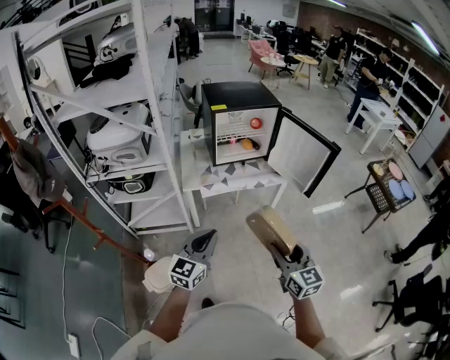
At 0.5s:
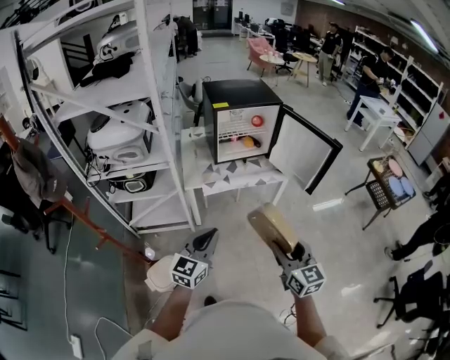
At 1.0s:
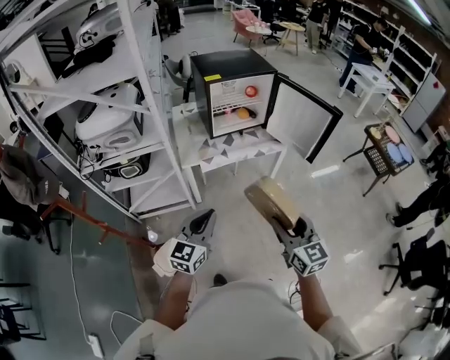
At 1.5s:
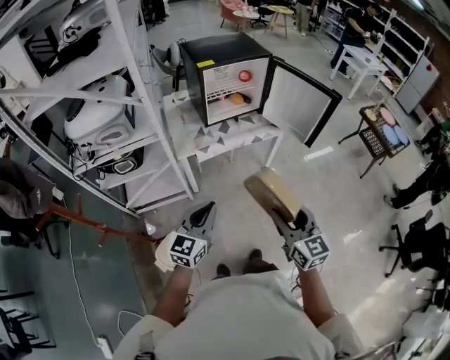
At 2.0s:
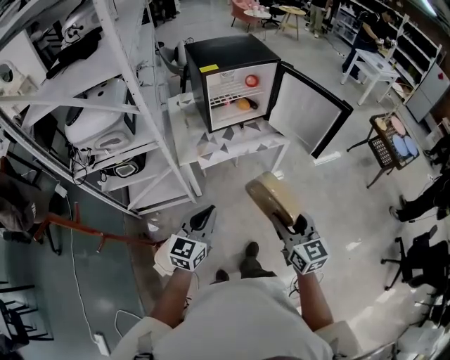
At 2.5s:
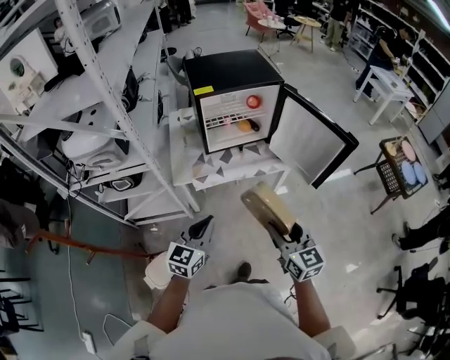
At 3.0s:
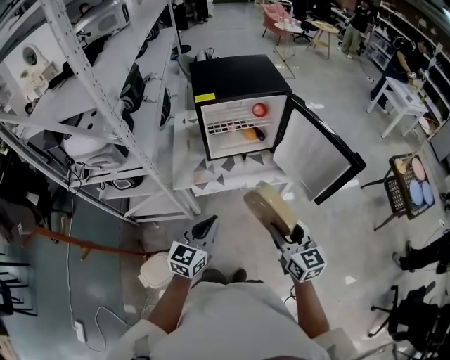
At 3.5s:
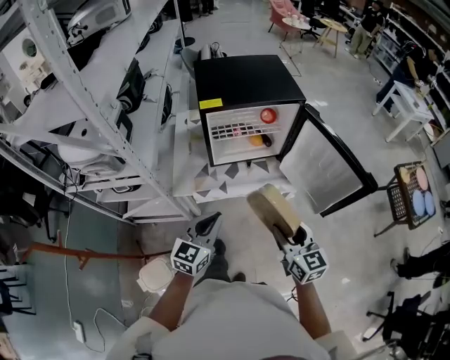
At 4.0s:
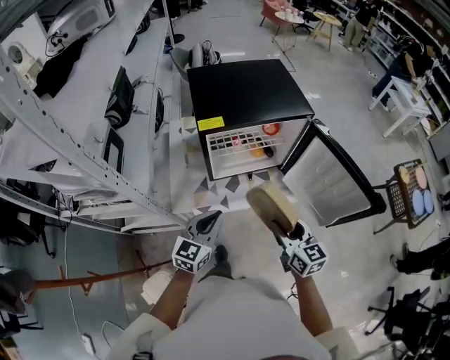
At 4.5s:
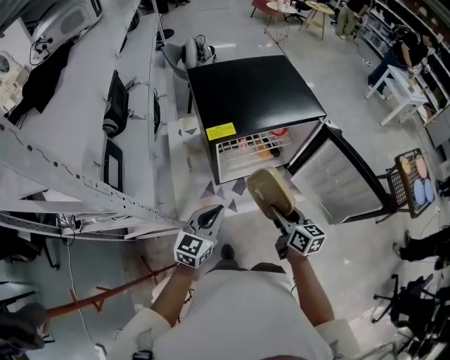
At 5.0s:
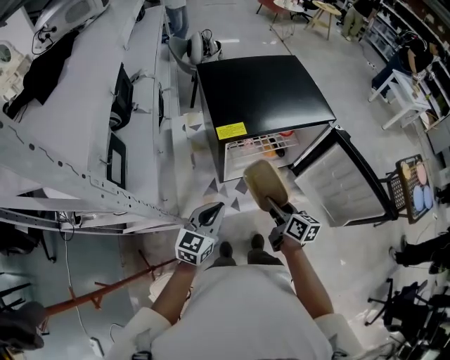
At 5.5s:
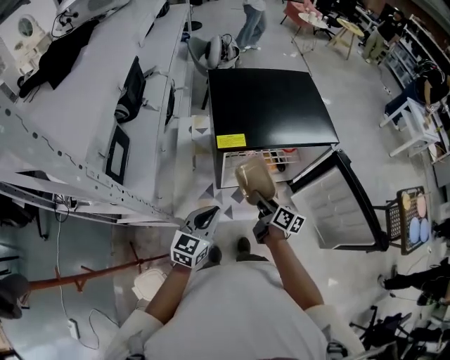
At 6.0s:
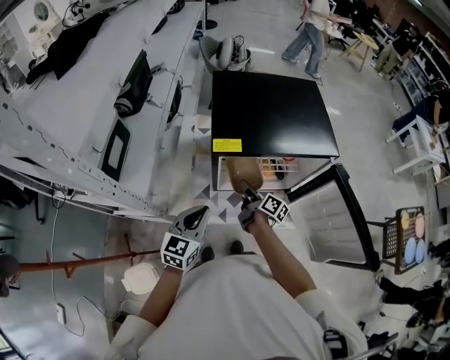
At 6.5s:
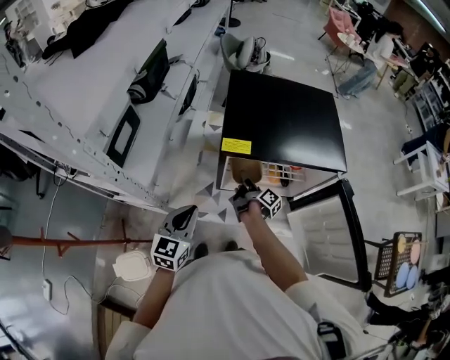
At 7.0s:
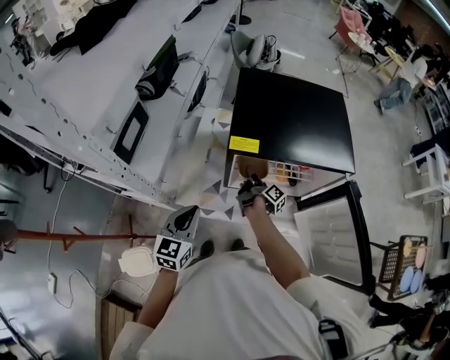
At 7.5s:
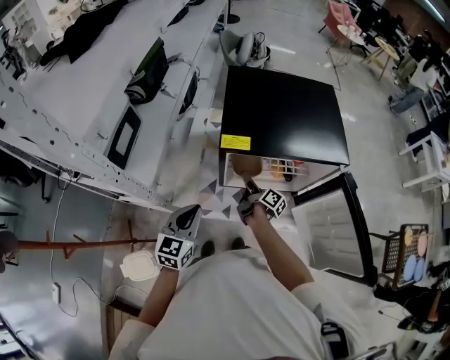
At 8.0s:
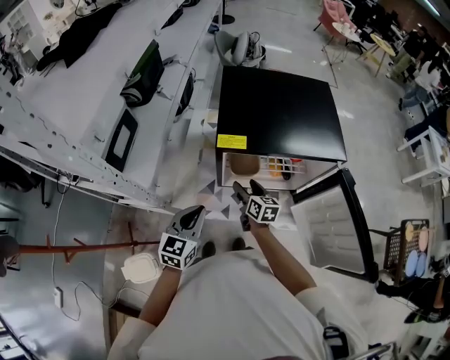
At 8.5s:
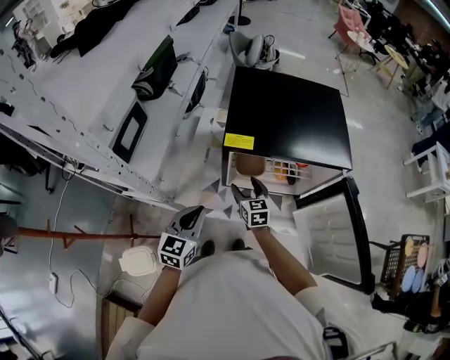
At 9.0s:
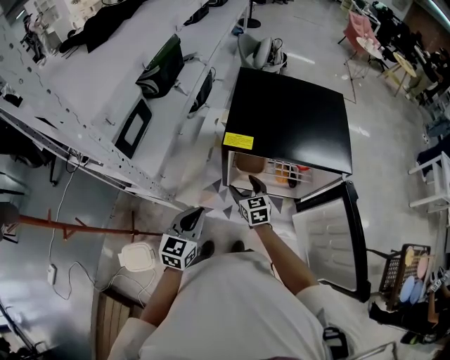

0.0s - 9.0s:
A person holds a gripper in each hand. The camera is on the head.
0.0s - 2.0s: The two grippers go about 5 cm forward.
2.0s - 4.5s: The grippers both shift forward by some 40 cm. The right gripper changes its angle by about 30 degrees.
4.5s - 7.0s: The right gripper moves forward, downward and to the left, some 30 cm, and rotates around the line of its fingers by roughly 50 degrees, clockwise from behind. Meanwhile the left gripper goes about 5 cm to the left, and rotates some 30 degrees.
7.0s - 9.0s: The right gripper is displaced backward by about 5 cm, and rolls counterclockwise, seen from behind, by about 90 degrees.

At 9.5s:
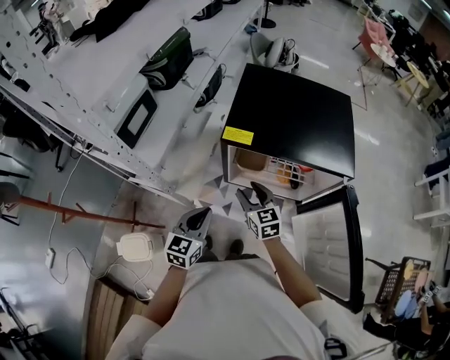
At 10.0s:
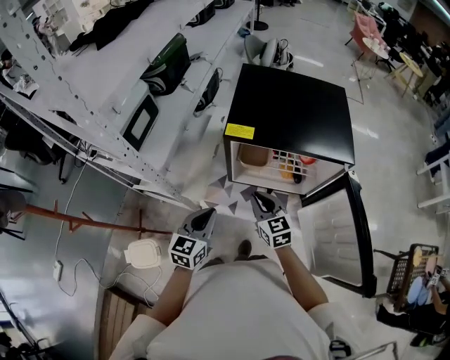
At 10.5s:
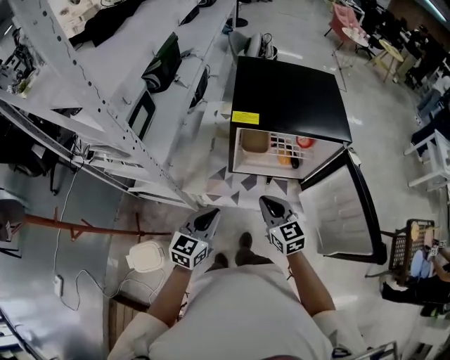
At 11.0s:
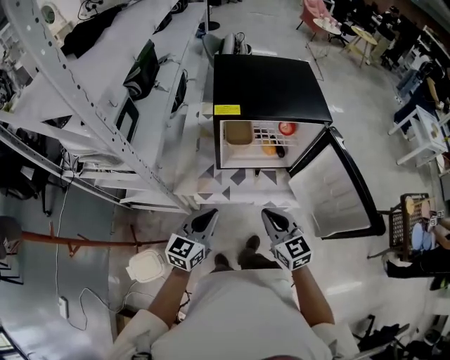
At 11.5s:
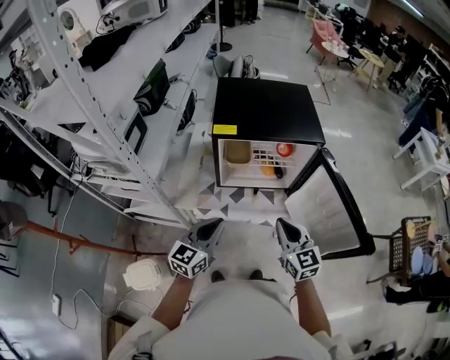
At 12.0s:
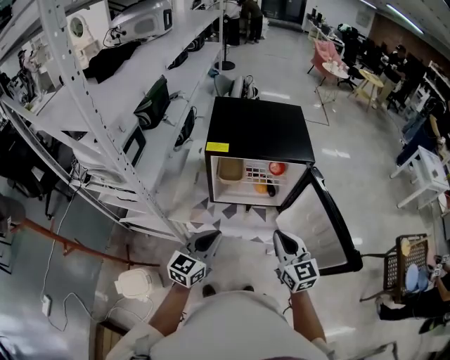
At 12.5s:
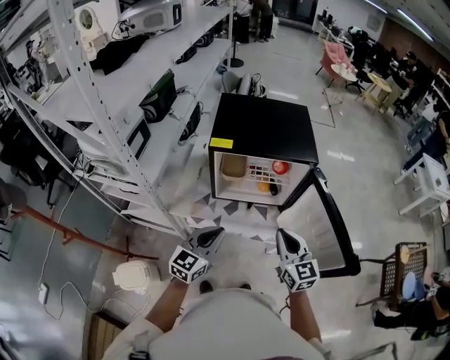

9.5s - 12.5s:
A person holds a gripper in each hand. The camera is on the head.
9.5s - 11.0s: The right gripper moves backward, roughly 20 cm, and closes; the left gripper goes approximately 10 cm backward, and changes its angle by roughly 20 degrees.
11.0s - 12.5s: Both grippers move to the right and upward, roughly 10 cm.

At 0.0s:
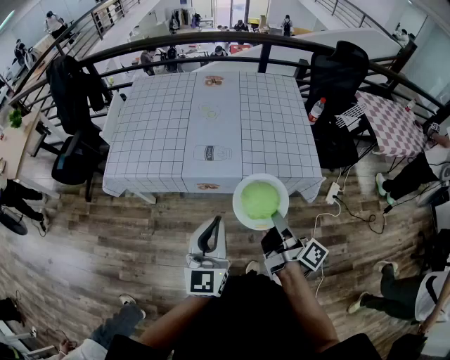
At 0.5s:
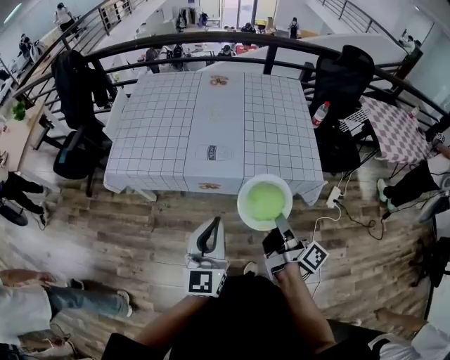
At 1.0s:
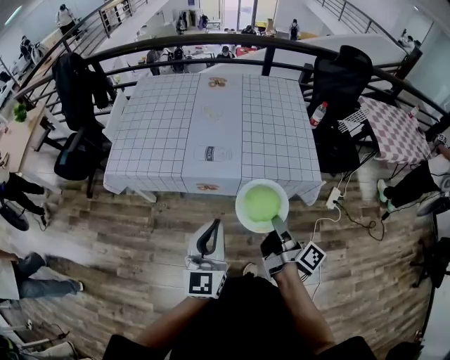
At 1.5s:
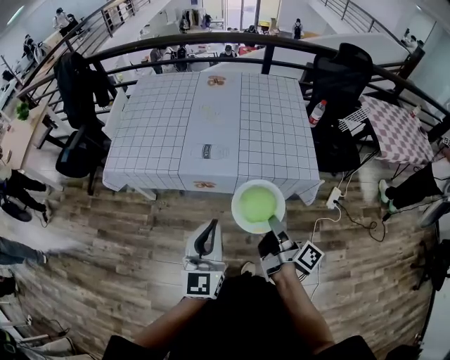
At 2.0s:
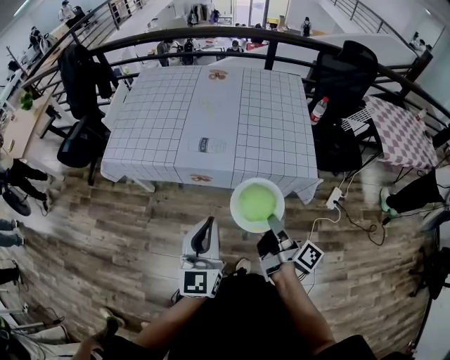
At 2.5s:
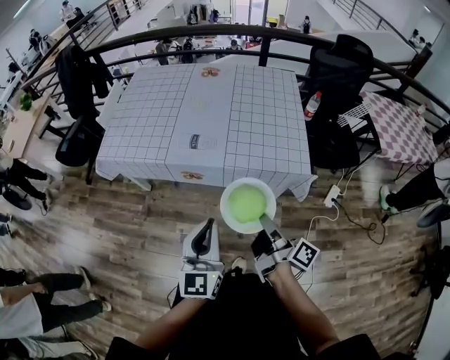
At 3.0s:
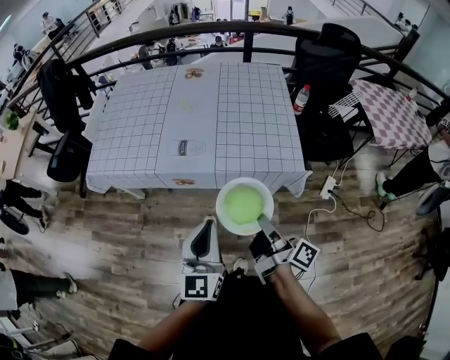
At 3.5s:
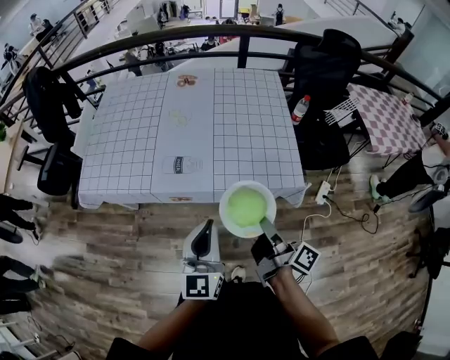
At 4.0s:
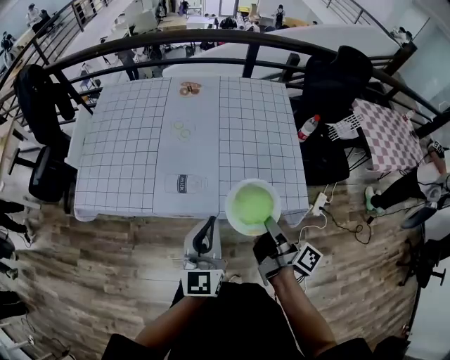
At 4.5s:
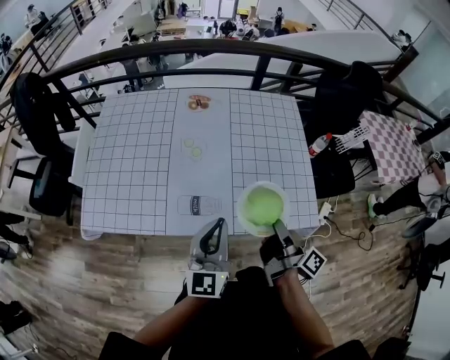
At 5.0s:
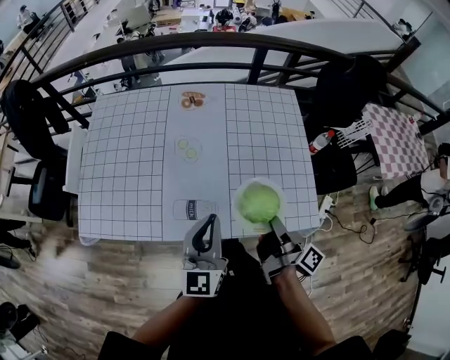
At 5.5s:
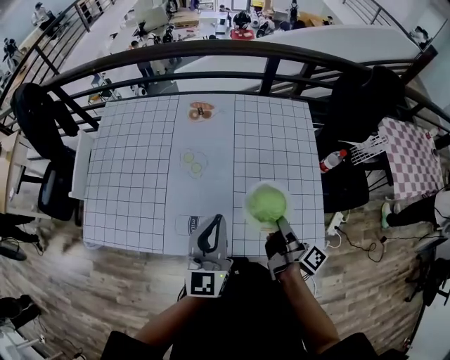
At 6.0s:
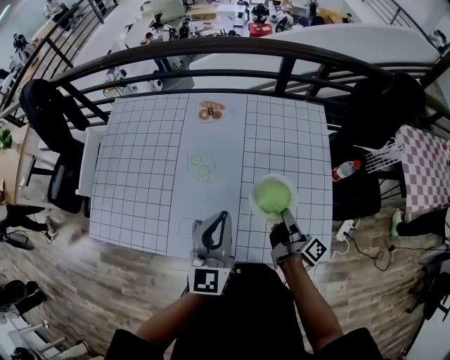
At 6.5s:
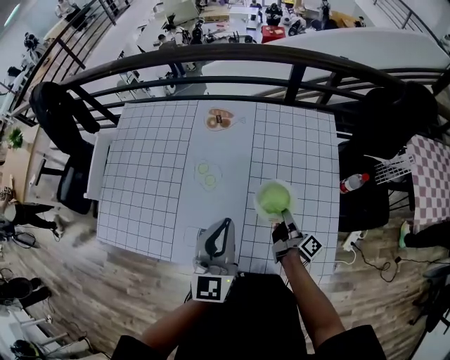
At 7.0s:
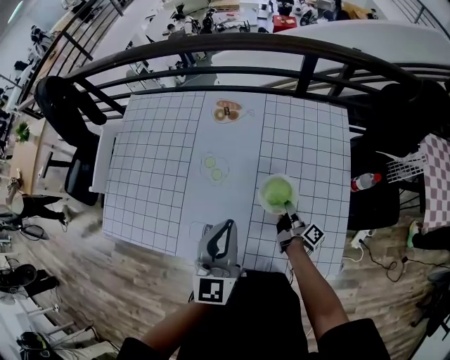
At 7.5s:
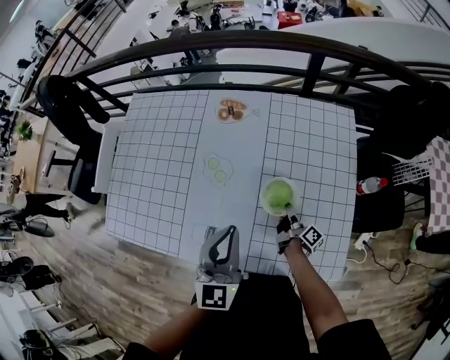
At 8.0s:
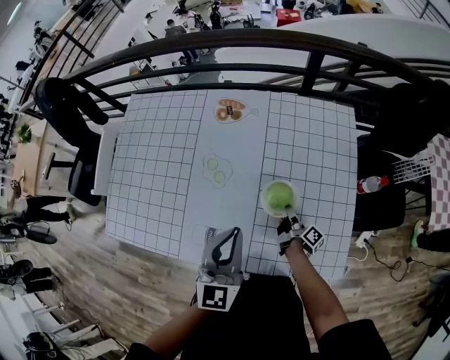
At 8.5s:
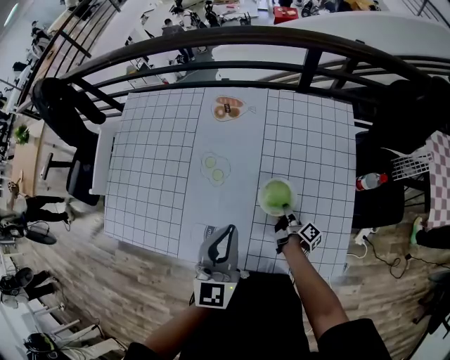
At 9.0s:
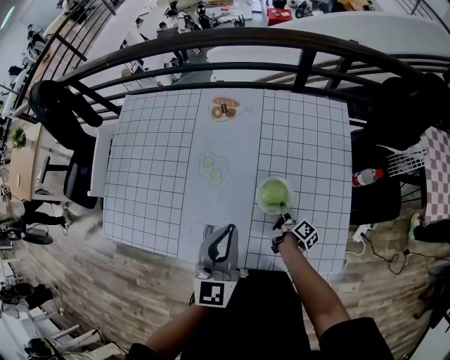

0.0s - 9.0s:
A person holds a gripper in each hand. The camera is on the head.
0.0s - 2.0s: The left gripper ends up about 5 cm from where it was.
2.0s - 4.5s: The left gripper shifts by about 30 cm.
4.5s - 7.0s: The left gripper shifts by approximately 20 cm.

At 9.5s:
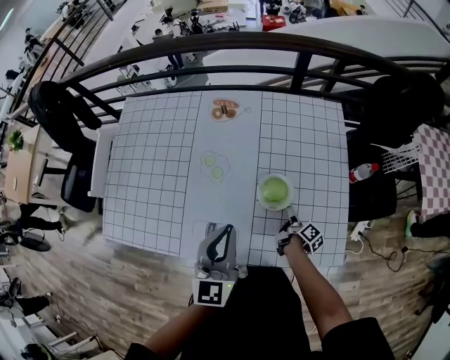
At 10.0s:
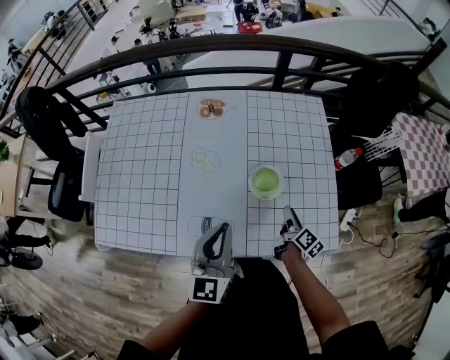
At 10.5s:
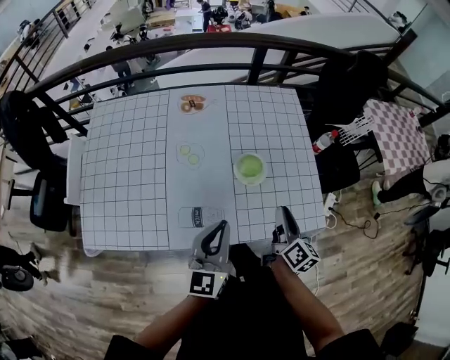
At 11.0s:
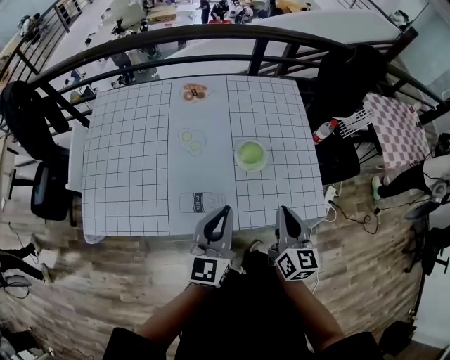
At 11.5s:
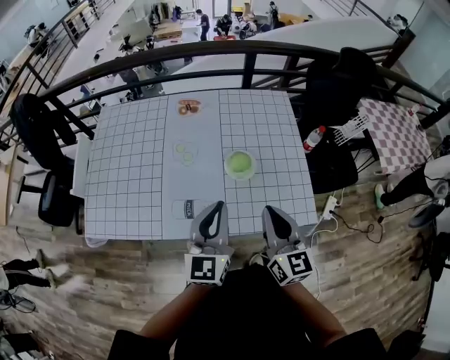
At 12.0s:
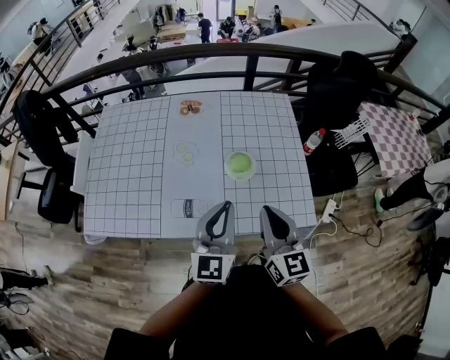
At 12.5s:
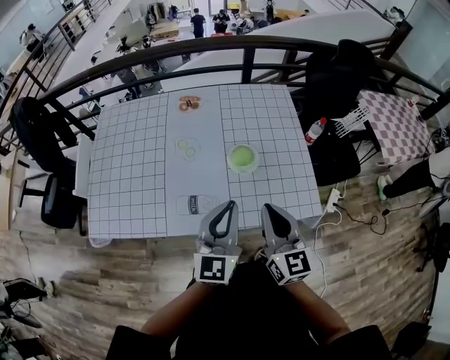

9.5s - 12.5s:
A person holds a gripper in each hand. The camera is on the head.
9.5s - 11.0s: The left gripper changes place by about 10 cm.
11.0s - 12.5s: The left gripper ends up roughly 10 cm from where it was.

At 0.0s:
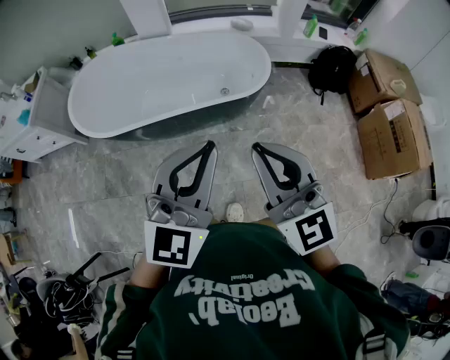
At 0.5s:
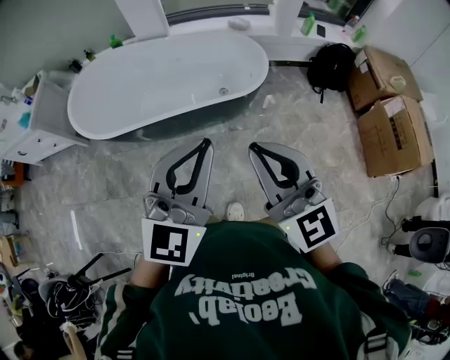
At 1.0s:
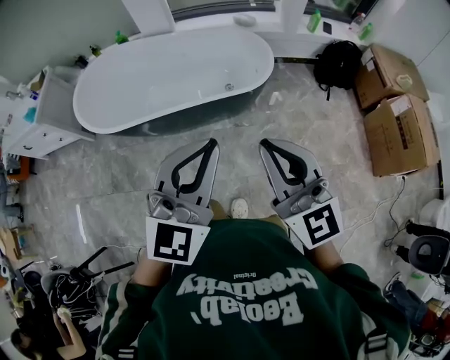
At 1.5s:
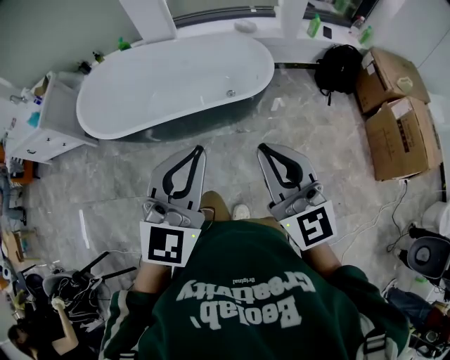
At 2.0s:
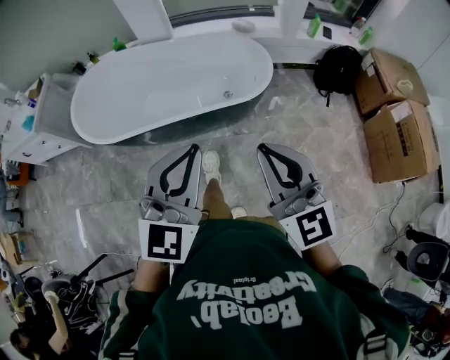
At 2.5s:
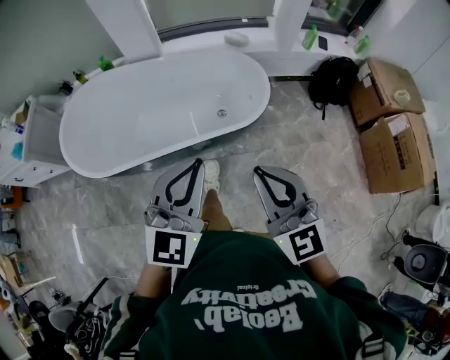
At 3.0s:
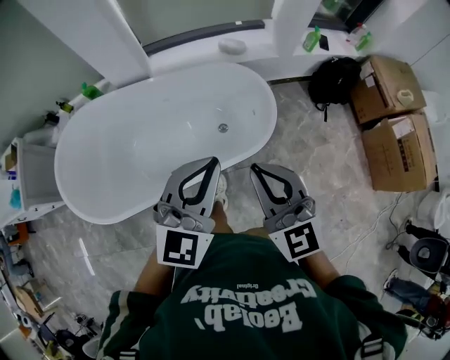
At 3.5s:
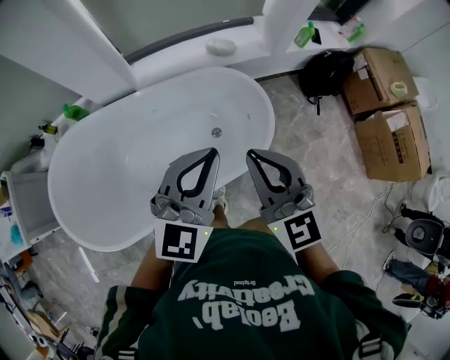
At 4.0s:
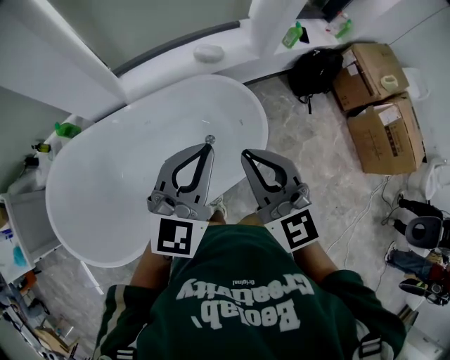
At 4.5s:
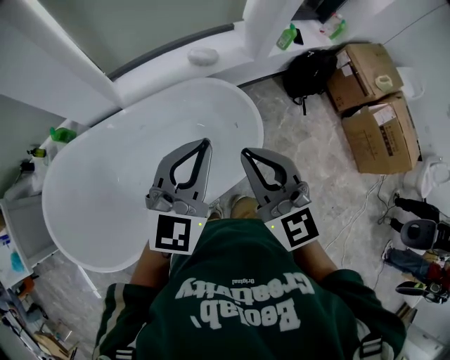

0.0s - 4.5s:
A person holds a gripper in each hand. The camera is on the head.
0.0s - 2.0s: The right gripper moves some 5 cm.
2.0s - 4.5s: Both grippers are carried forward, roughly 50 cm. The left gripper swivels some 20 degrees; the right gripper rotates roughly 20 degrees.
